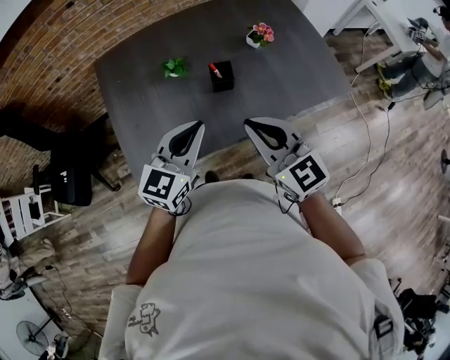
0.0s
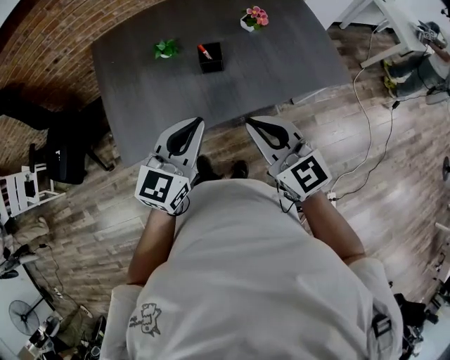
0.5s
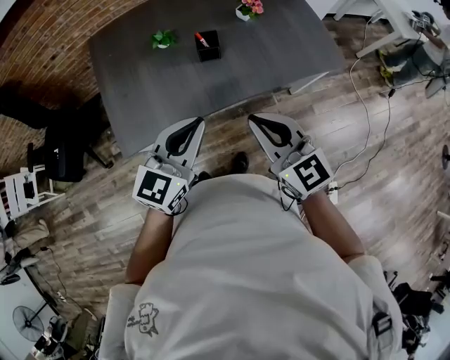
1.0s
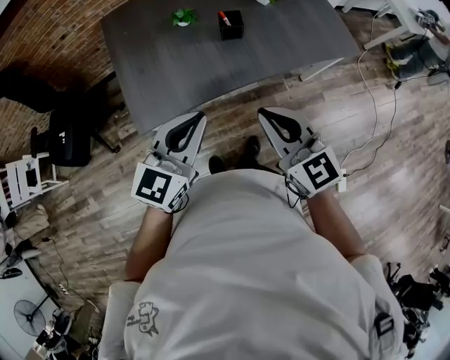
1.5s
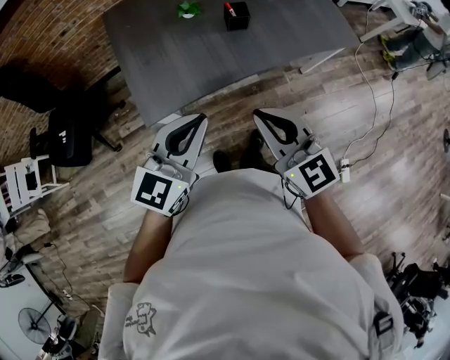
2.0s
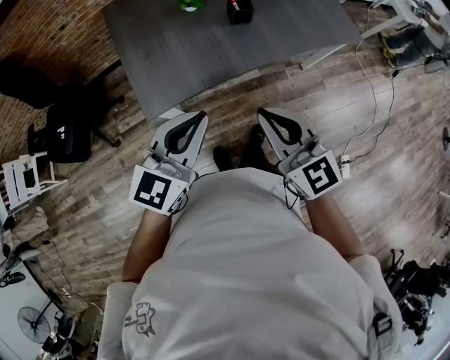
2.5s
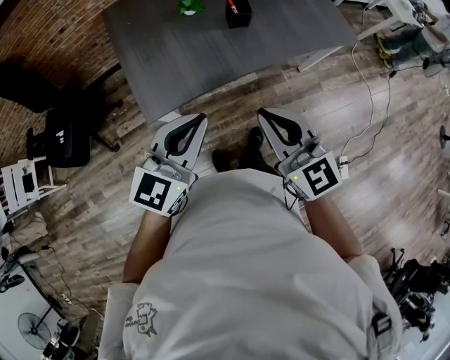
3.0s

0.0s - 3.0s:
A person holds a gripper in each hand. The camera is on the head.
0.0s - 1.5s: The two grippers go approximately 15 cm backward.
1.5s - 3.0s: Both grippers travel together to the left and backward, roughly 10 cm.

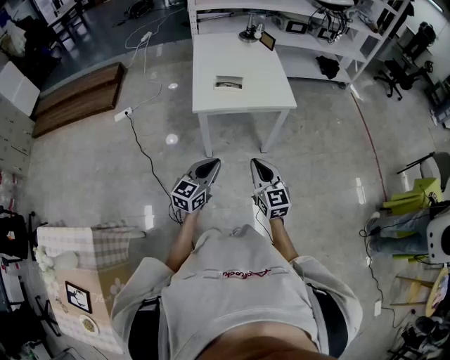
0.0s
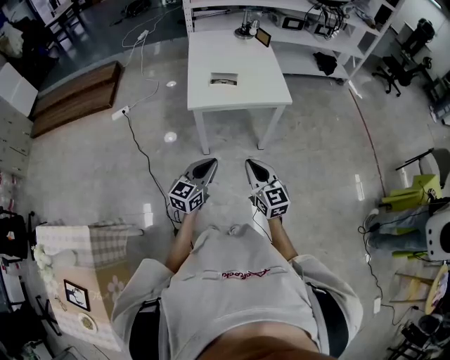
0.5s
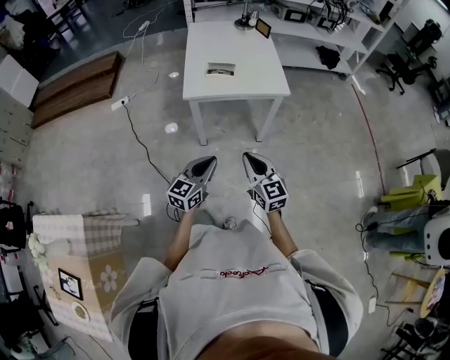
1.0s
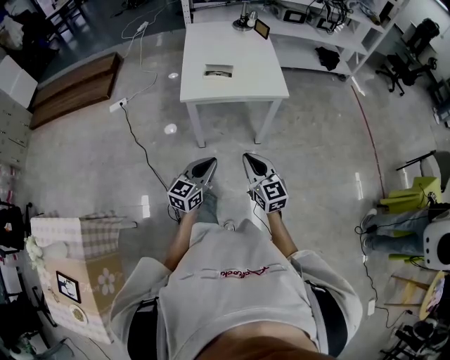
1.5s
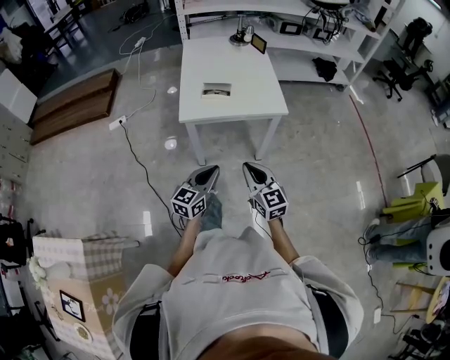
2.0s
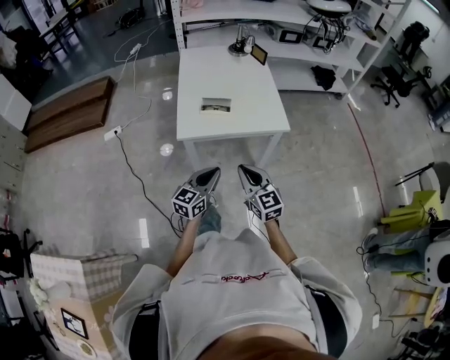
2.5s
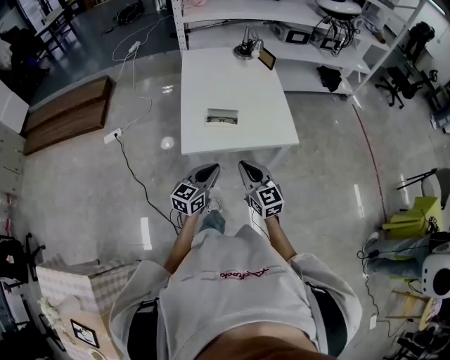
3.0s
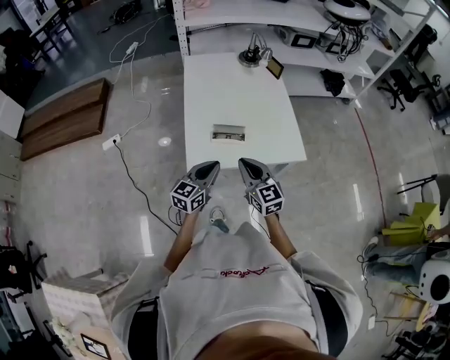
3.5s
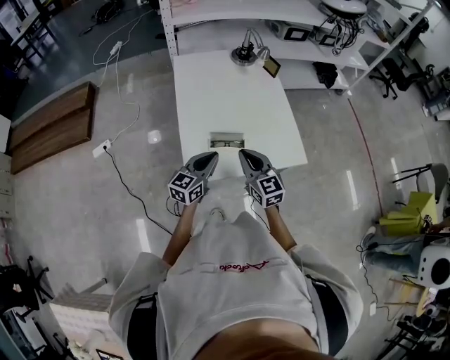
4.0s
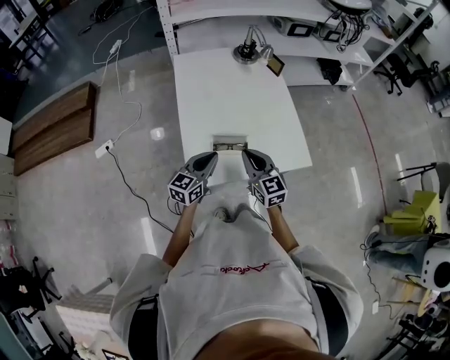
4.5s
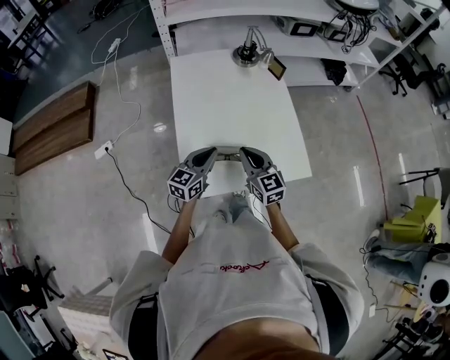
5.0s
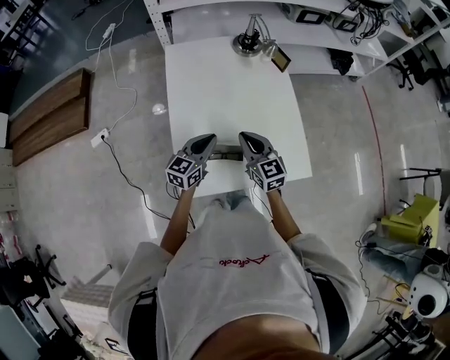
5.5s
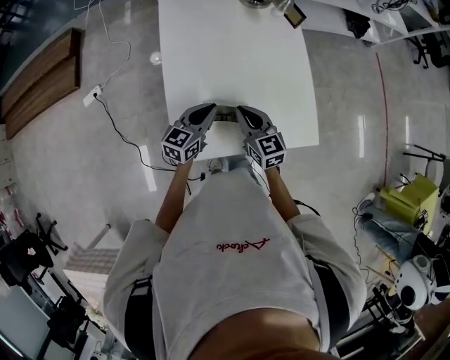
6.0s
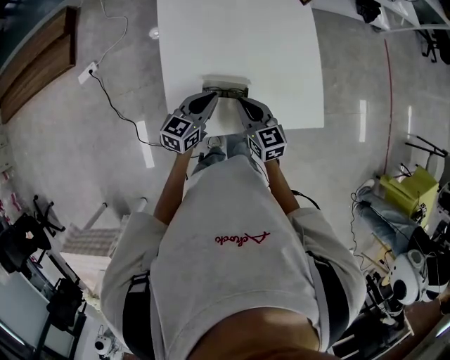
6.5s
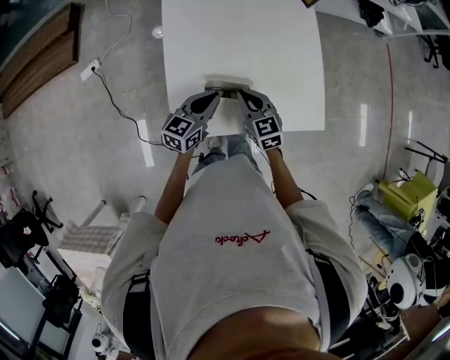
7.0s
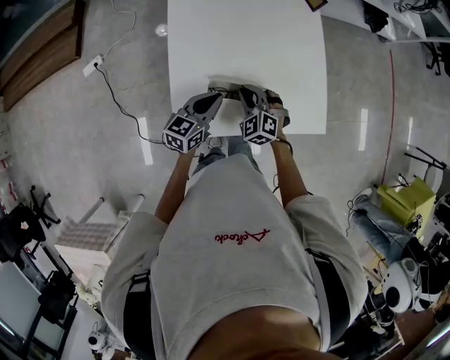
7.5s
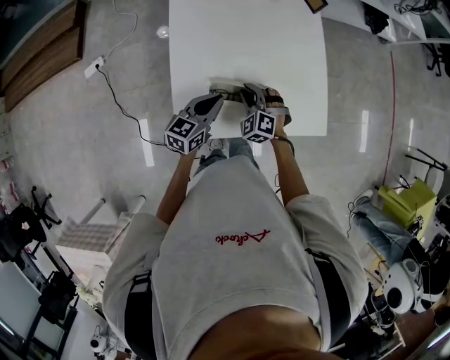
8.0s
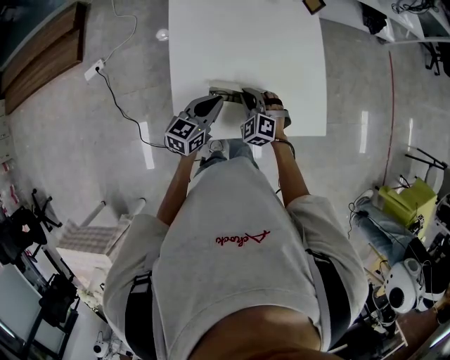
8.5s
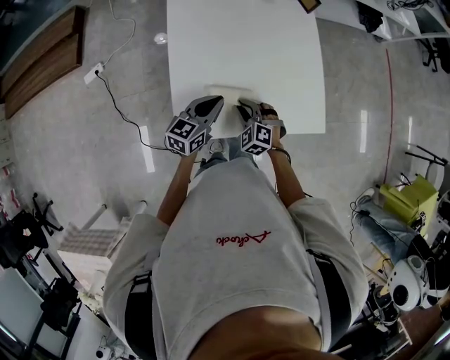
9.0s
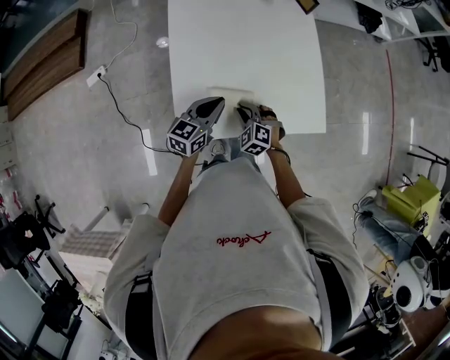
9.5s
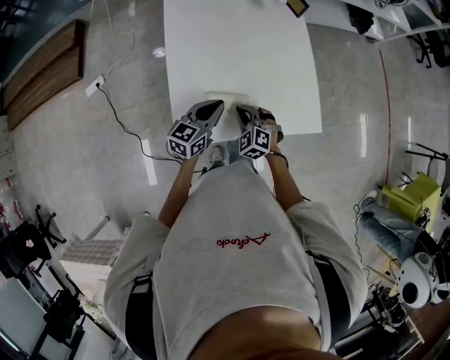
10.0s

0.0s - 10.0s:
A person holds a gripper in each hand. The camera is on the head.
0.0s - 2.0s: The right gripper ends up roughly 5 cm from where it was, while the left gripper heads to the right, covering some 5 cm.
2.0s - 4.0s: The grippers both shift forward by some 35 cm.
4.0s - 6.0s: The two grippers go roughly 15 cm forward and downward.
6.0s - 8.0s: The right gripper goes approximately 10 cm downward, rolls counterclockwise, seen from behind, by some 50 degrees, and opens.
8.0s - 10.0s: The right gripper goes about 5 cm backward, and closes.

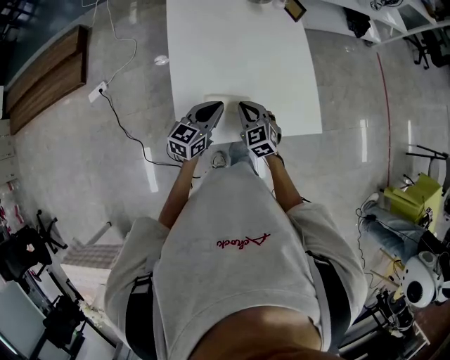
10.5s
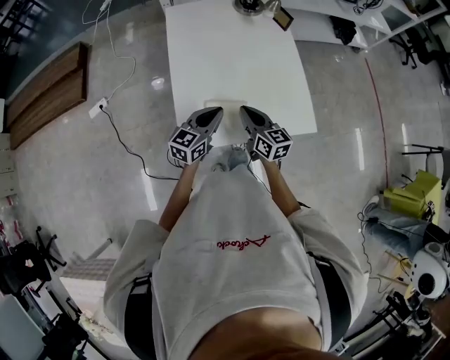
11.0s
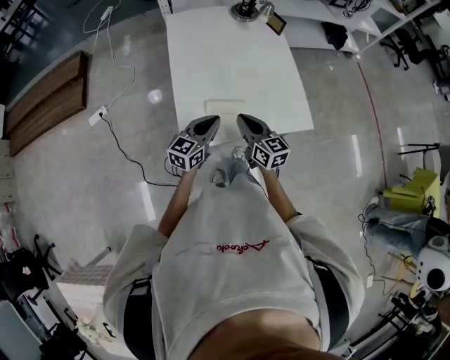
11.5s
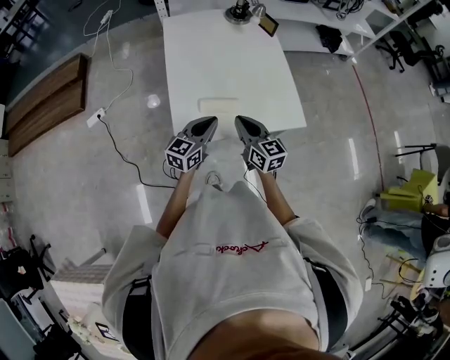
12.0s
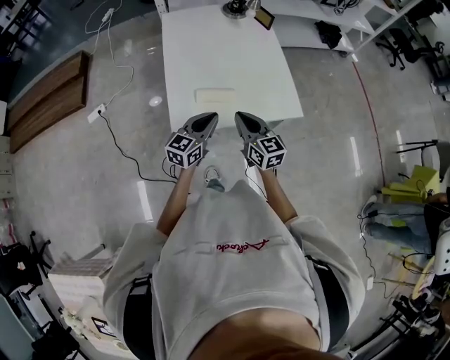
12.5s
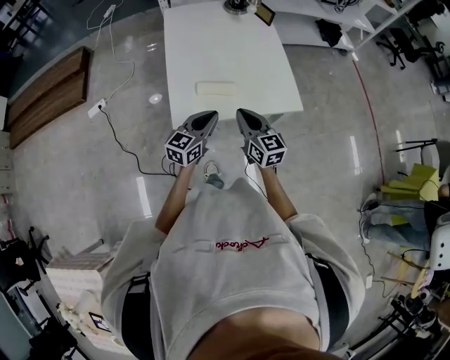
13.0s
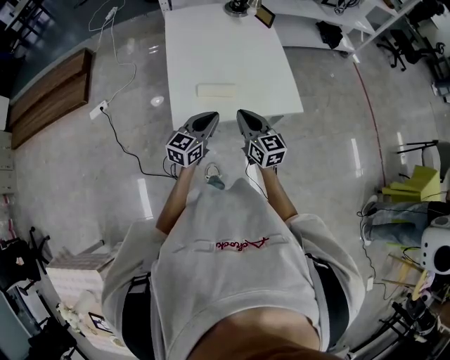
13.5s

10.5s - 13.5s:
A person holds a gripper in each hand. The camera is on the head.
10.5s - 12.0s: The left gripper shifts about 10 cm backward. Meanwhile the right gripper goes about 15 cm upward and backward, and swivels roughly 40 degrees.
12.0s - 13.5s: The left gripper is displaced backward by about 5 cm; the right gripper shifts by approximately 5 cm.

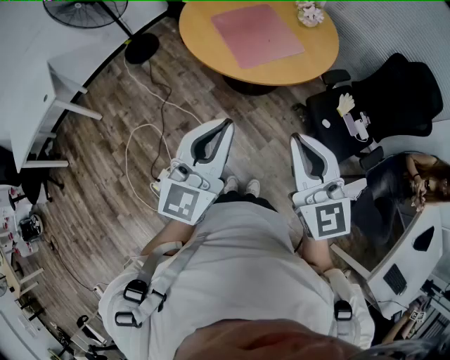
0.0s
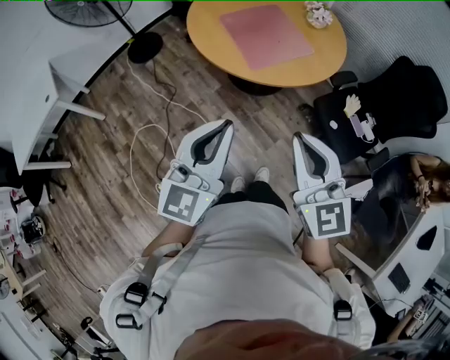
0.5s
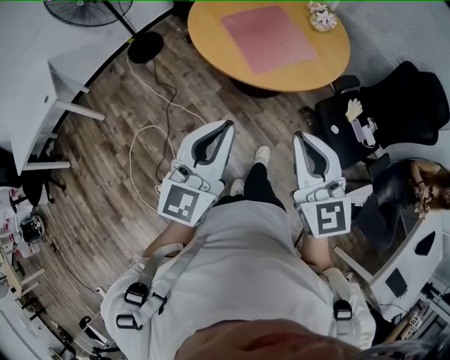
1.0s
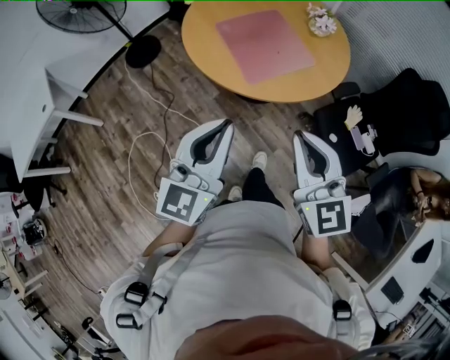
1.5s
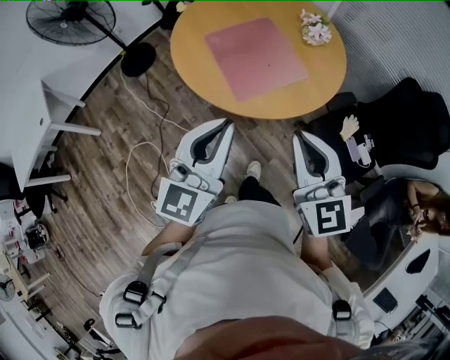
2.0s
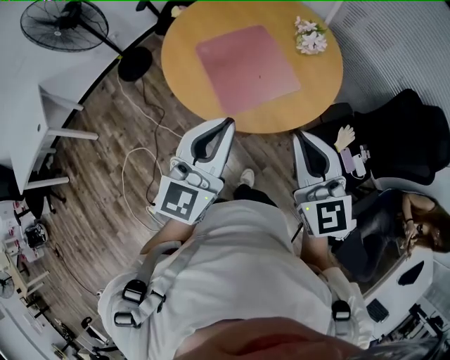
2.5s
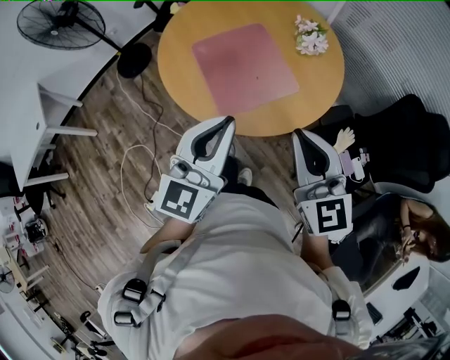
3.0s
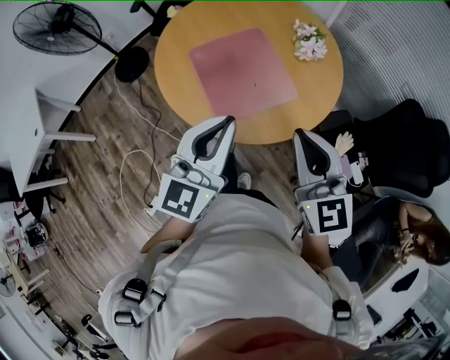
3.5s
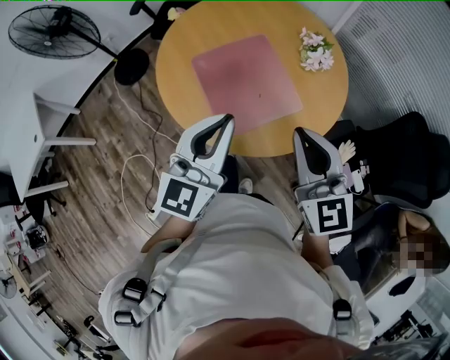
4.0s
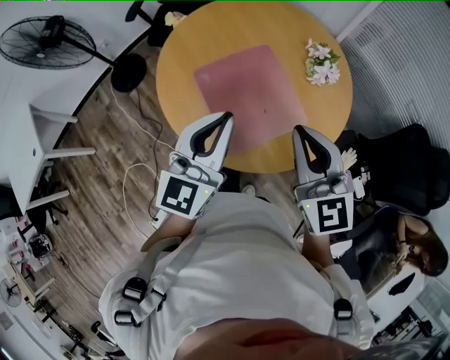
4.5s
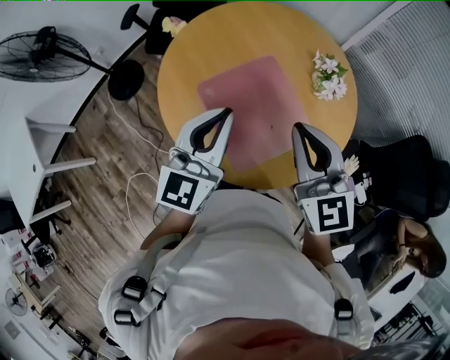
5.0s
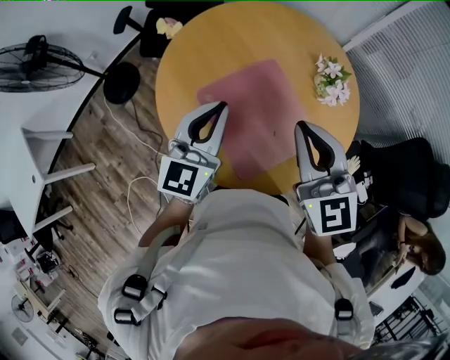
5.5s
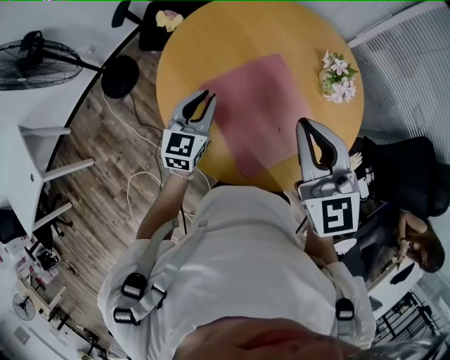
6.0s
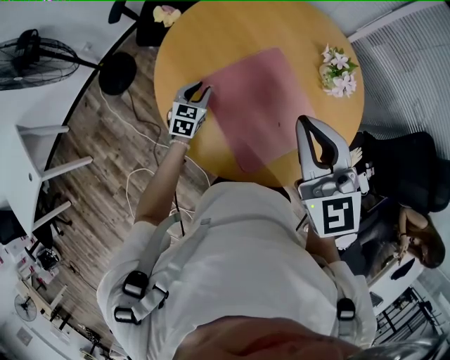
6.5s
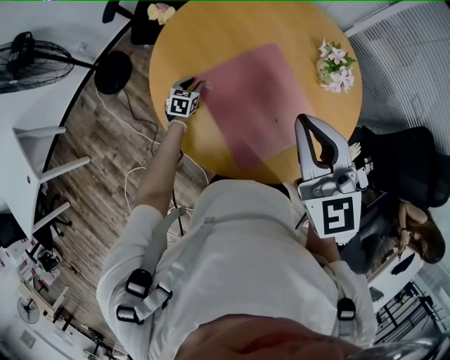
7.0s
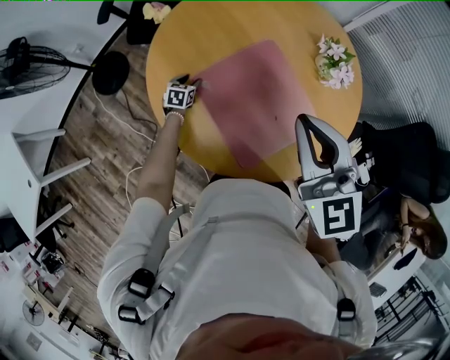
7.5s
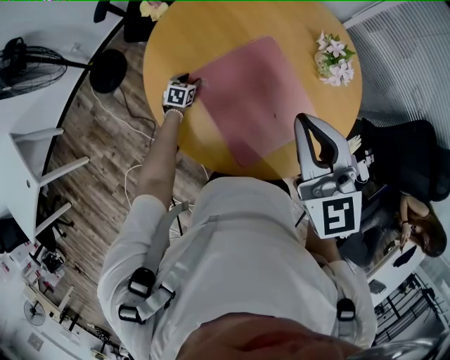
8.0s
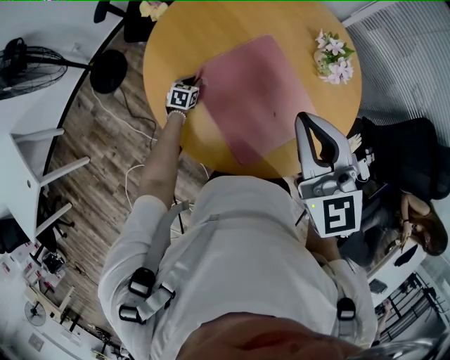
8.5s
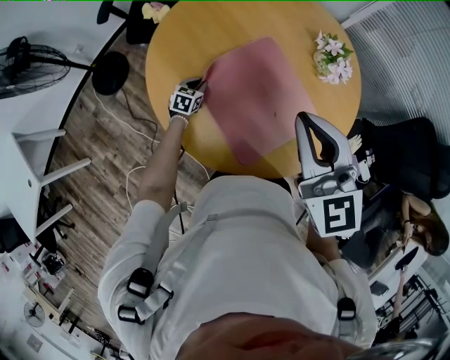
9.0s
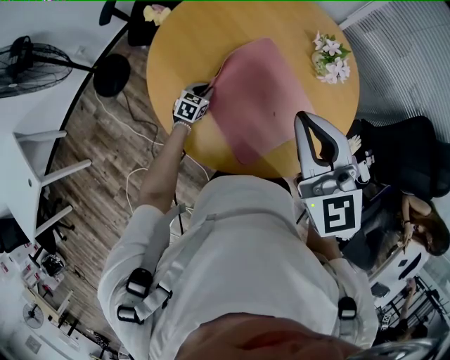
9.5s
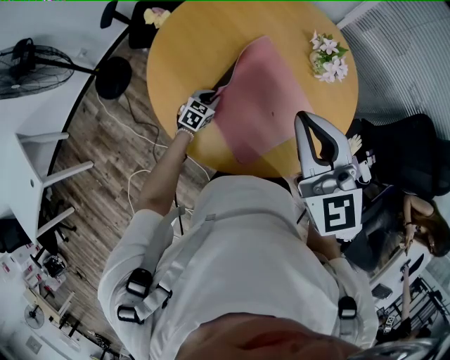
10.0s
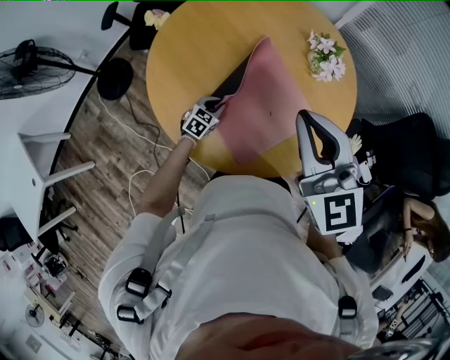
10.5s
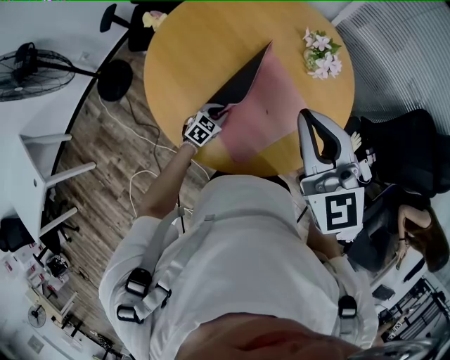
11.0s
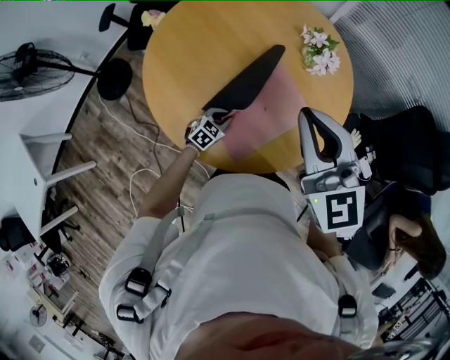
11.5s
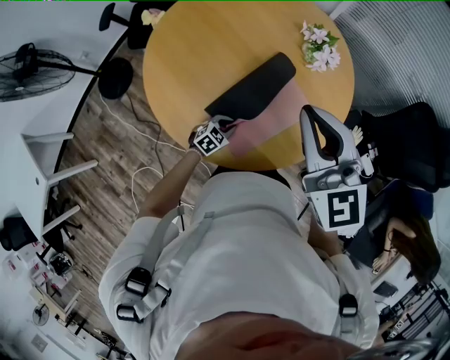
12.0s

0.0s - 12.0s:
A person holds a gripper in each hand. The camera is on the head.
0.0s - 2.0s: The two grippers go roughly 20 cm forward.
2.0s - 4.0s: The two grippers go approximately 20 cm forward.
4.0s - 6.0s: The right gripper travels forward and to the left by some 25 cm, while the left gripper shifts roughly 40 cm forward, downward and to the left.
6.0s - 8.0s: The left gripper goes about 35 cm downward, points its fingers some 30 degrees further downward, and opens up.
8.0s - 10.0s: The left gripper moves to the right, upward and backward, roughly 15 cm, turns by roughly 20 degrees, and closes its fingers.
10.0s - 12.0s: The left gripper heads to the right and backward, covering some 20 cm. The right gripper is displaced to the right by about 5 cm.
